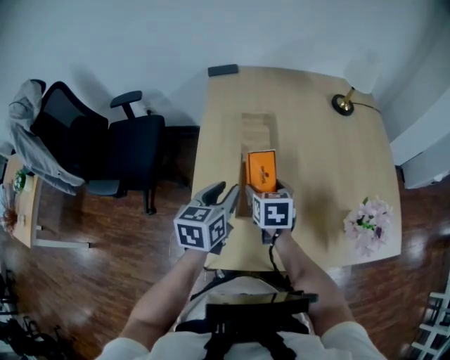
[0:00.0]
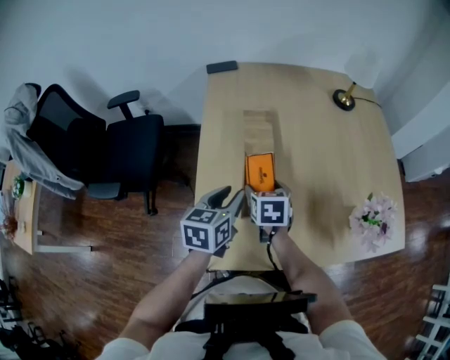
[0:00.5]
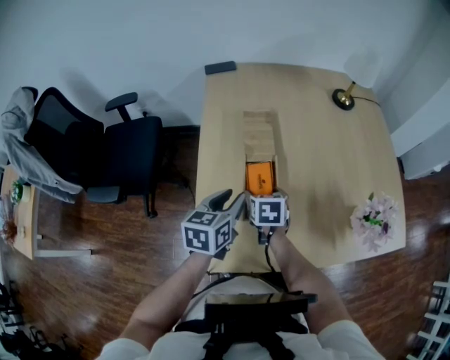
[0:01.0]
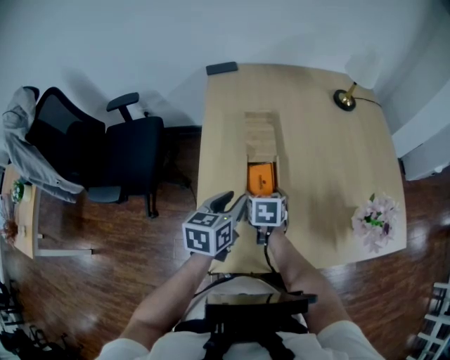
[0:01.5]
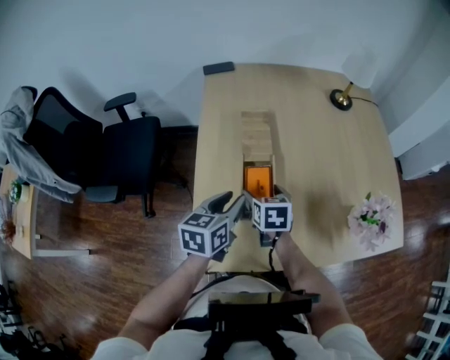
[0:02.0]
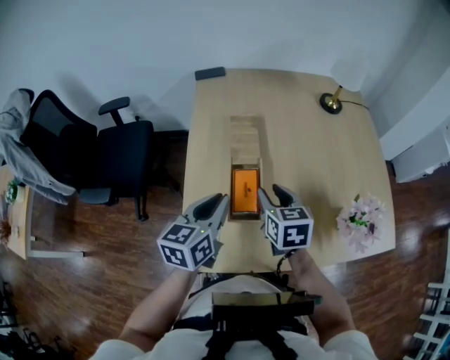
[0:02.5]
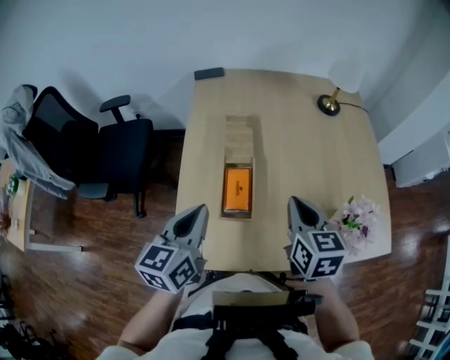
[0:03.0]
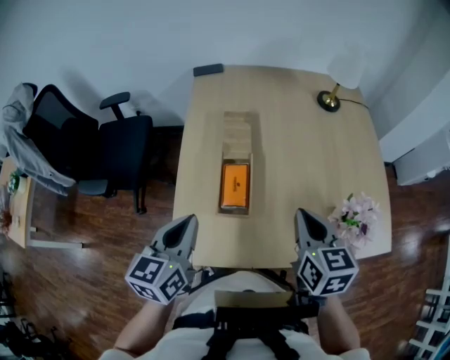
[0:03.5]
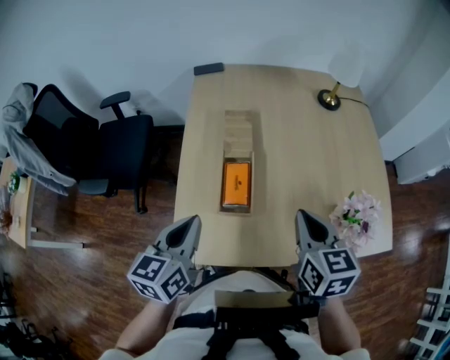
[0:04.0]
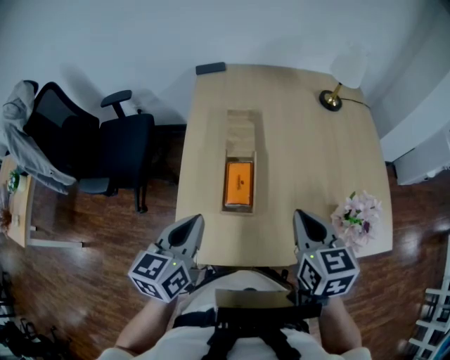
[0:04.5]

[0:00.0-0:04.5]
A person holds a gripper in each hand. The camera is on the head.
0:02.0 to 0:04.5: The left gripper shifts roughly 15 cm backward and upward, and closes up; the right gripper travels upward, to the right and backward by approximately 25 cm, and closes its fingers.

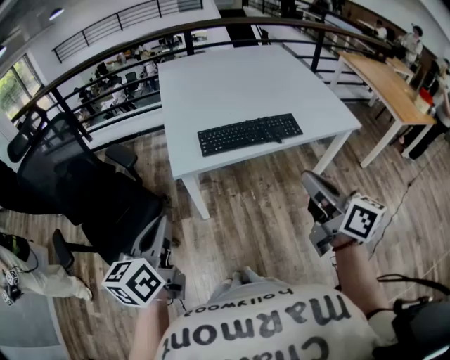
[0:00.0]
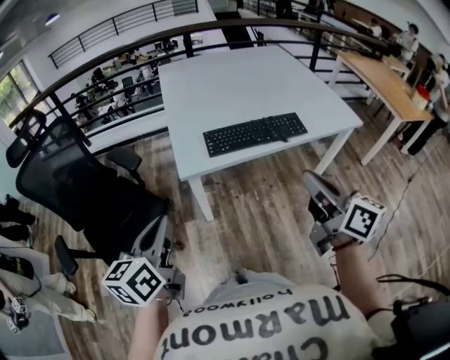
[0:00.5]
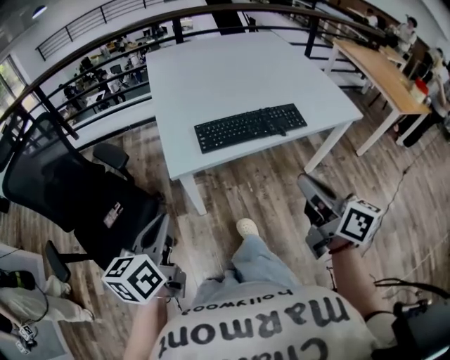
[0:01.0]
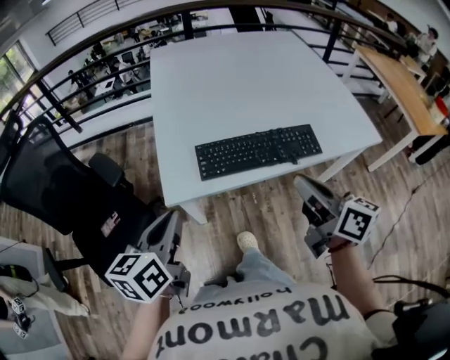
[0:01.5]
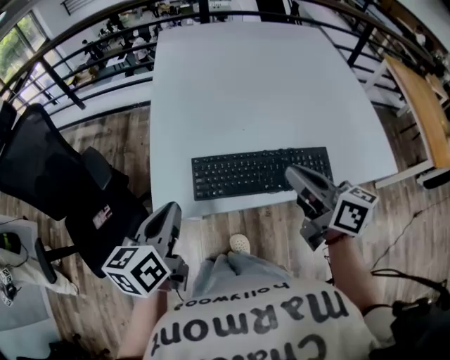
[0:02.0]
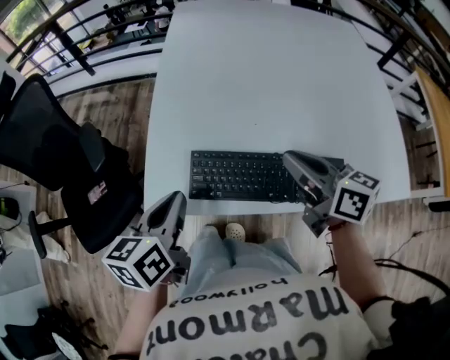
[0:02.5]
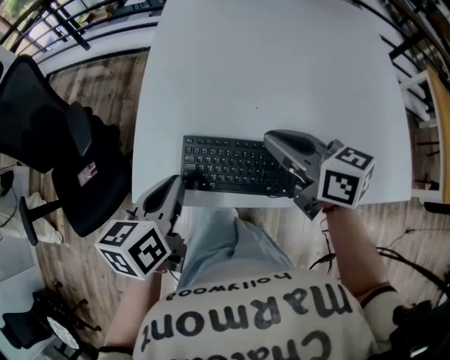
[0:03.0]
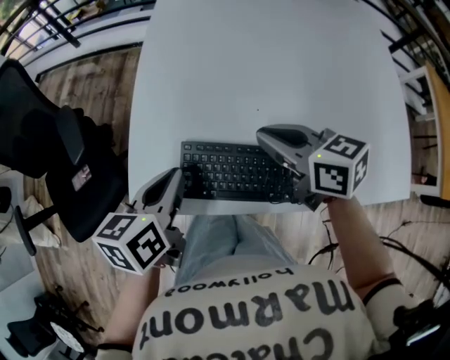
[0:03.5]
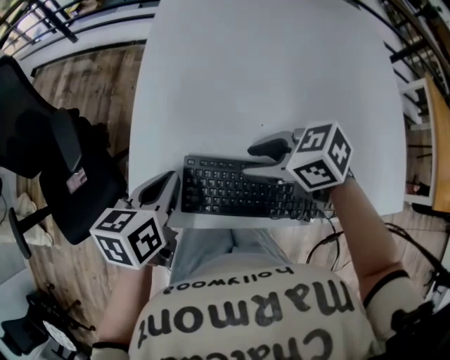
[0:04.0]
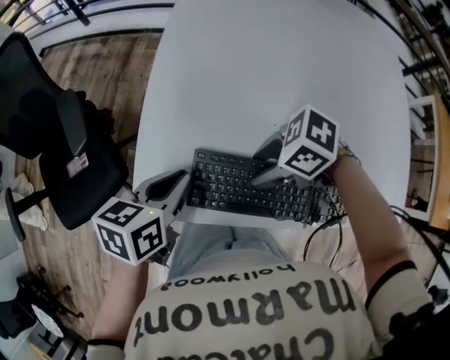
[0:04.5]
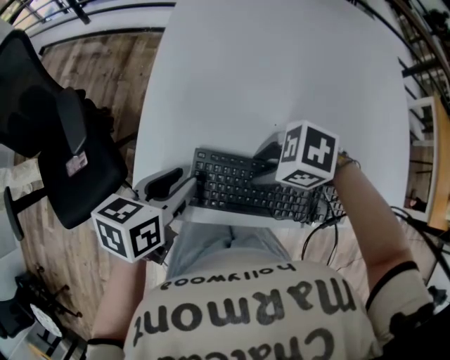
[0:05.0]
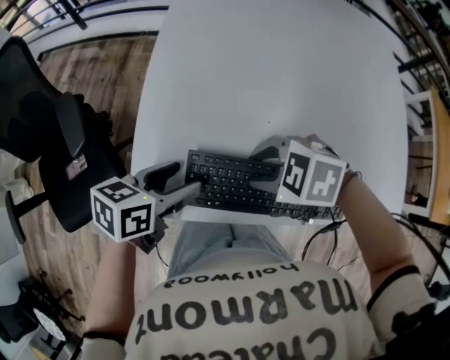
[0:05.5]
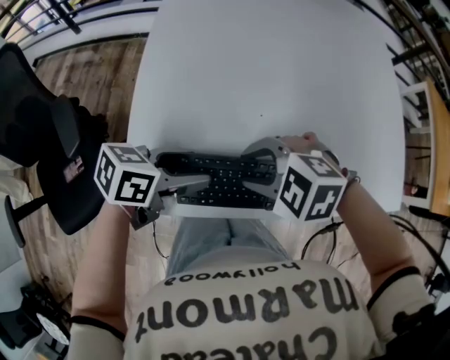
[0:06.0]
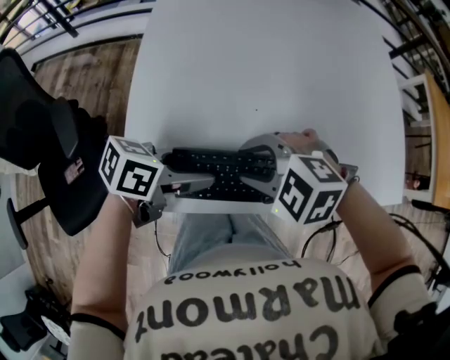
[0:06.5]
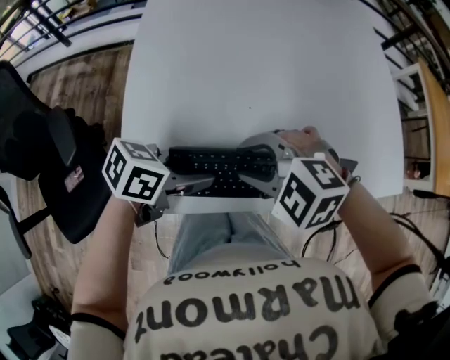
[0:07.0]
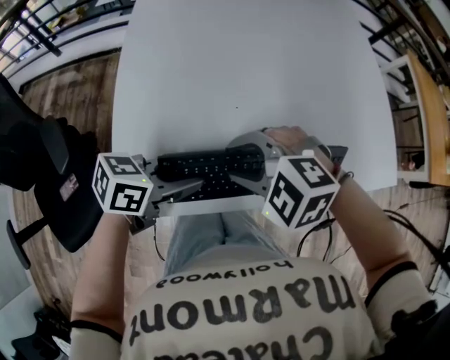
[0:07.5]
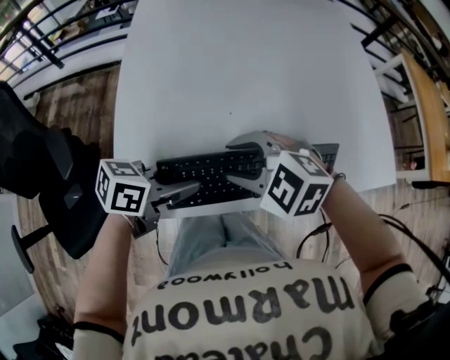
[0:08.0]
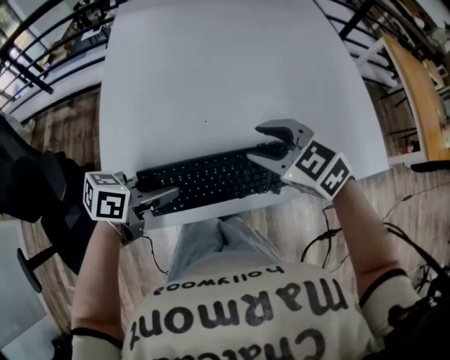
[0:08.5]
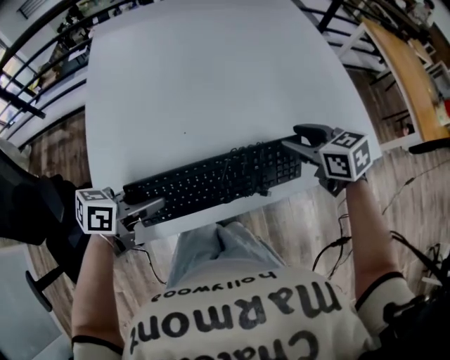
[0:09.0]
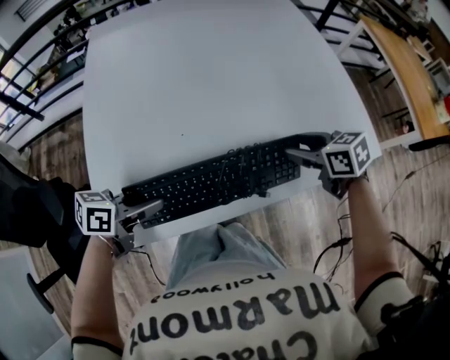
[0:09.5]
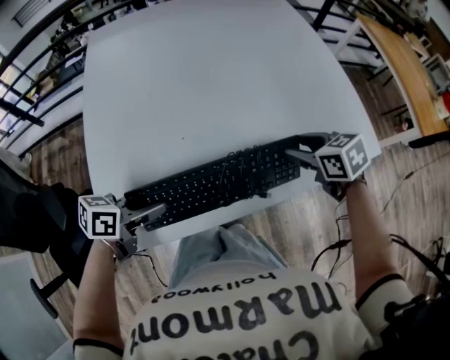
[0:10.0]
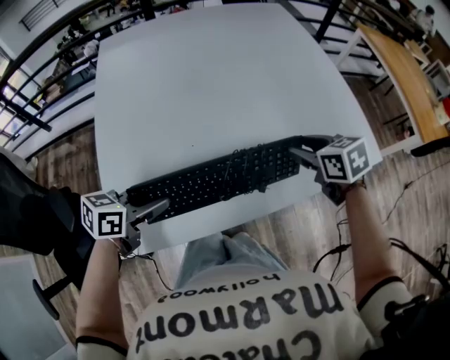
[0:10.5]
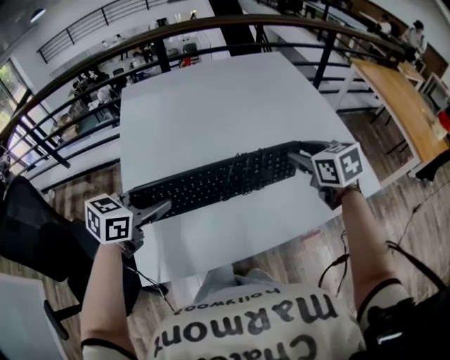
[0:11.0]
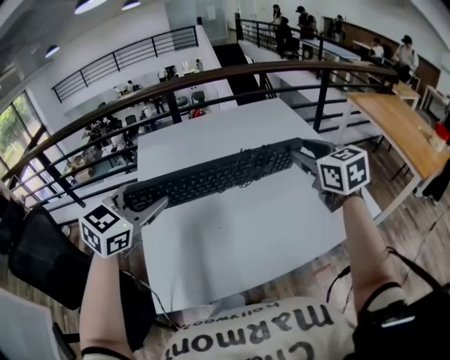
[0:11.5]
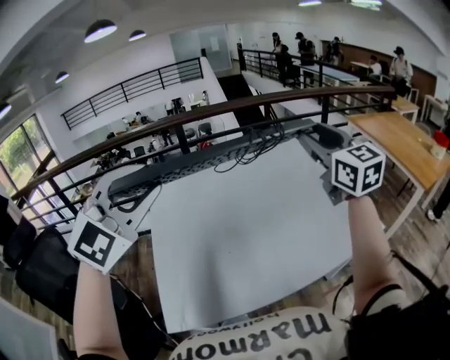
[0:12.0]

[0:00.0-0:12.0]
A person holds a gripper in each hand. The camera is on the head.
0:00.0 to 0:02.0: The grippers both shift forward by roughly 25 cm.
0:02.0 to 0:04.0: The right gripper ends up roughly 20 cm from where it was, angles its fingers downward, by some 30 degrees, and opens its fingers. The left gripper moves approximately 15 cm.
0:04.0 to 0:06.0: The left gripper shifts by roughly 5 cm, swivels about 40 degrees, and opens its fingers, while the right gripper turns by roughly 40 degrees.
0:06.0 to 0:08.0: The left gripper closes.
0:08.0 to 0:10.0: The right gripper moves approximately 30 cm, and twists approximately 60 degrees clockwise, seen from behind.
0:10.0 to 0:12.0: Both grippers travel together upward, approximately 50 cm. The left gripper rolls clockwise, seen from behind, by approximately 90 degrees, while the right gripper points its fingers about 60 degrees further upward.

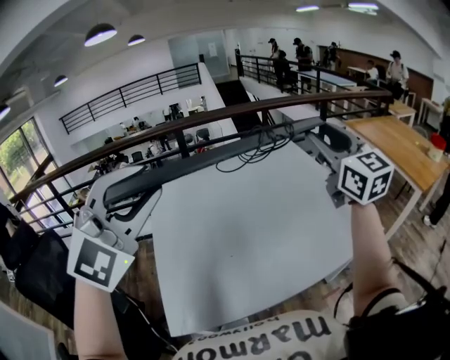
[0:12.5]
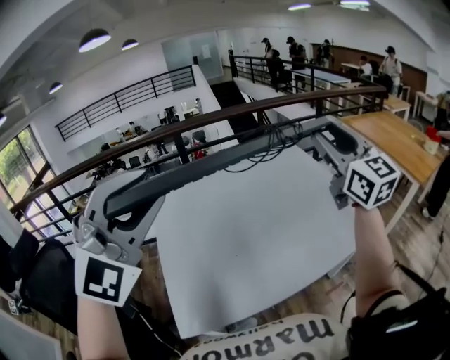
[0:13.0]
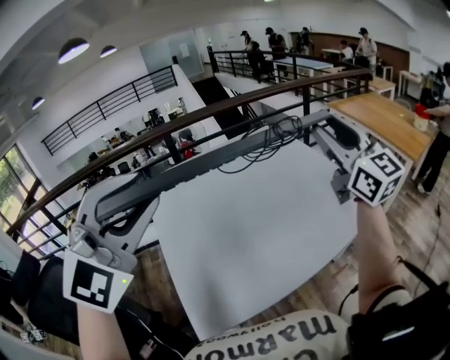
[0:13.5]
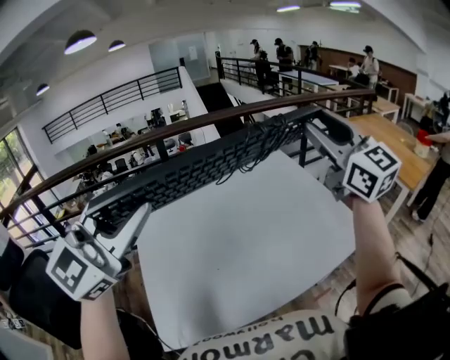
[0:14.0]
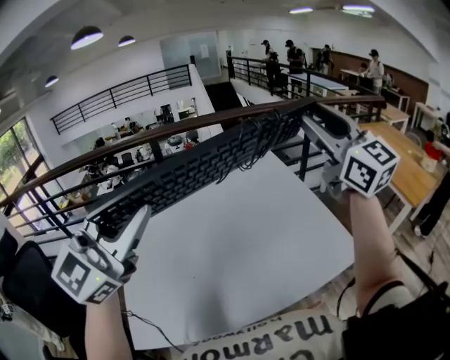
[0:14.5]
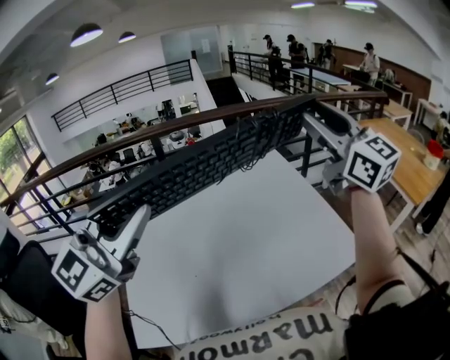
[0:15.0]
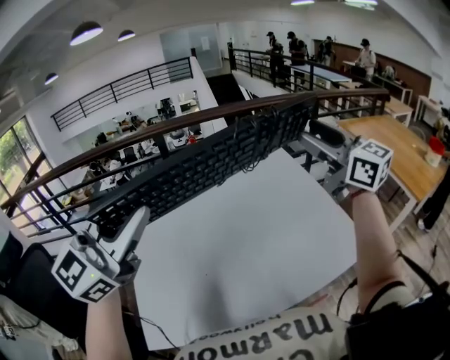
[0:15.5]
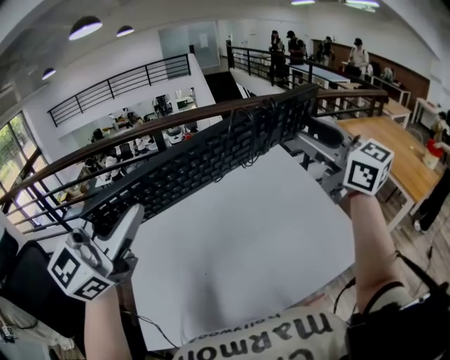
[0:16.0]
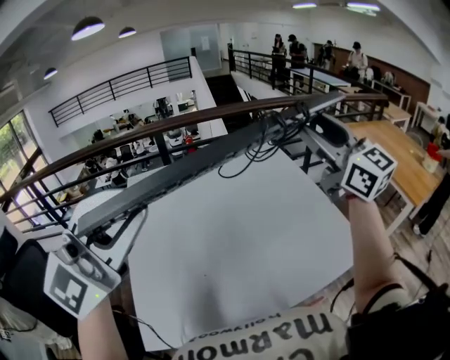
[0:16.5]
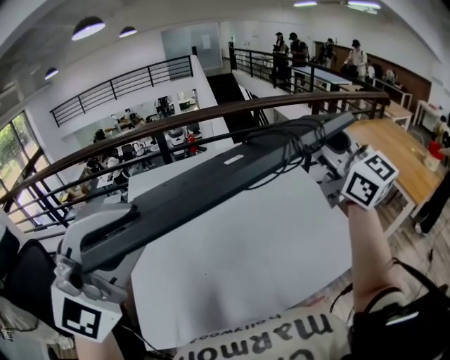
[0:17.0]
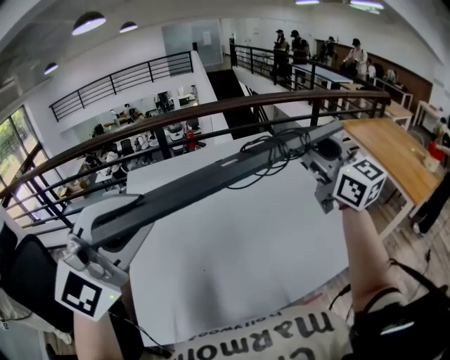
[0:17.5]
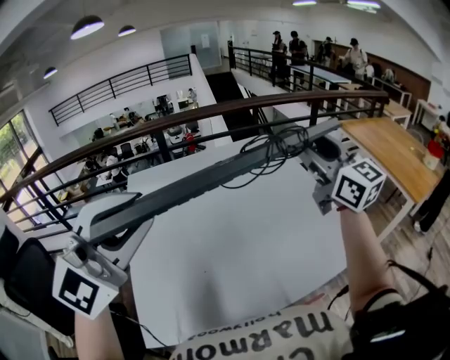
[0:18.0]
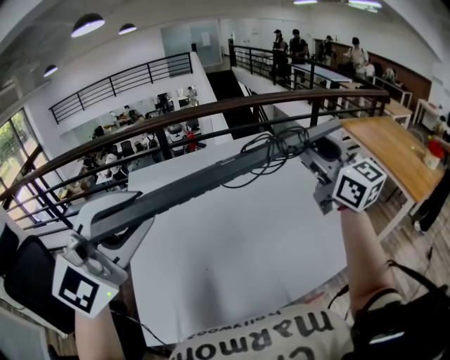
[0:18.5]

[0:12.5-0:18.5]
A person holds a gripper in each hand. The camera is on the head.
0:12.5 to 0:14.5: The left gripper travels upward and forward by some 10 cm, and turns by some 40 degrees; the right gripper goes roughly 15 cm upward and forward.
0:14.5 to 0:16.5: The right gripper ends up approximately 5 cm from where it was.

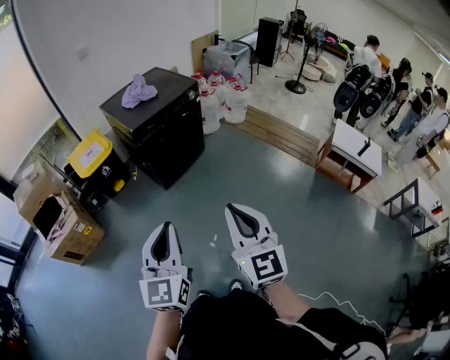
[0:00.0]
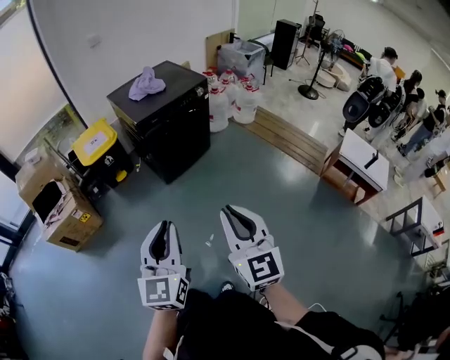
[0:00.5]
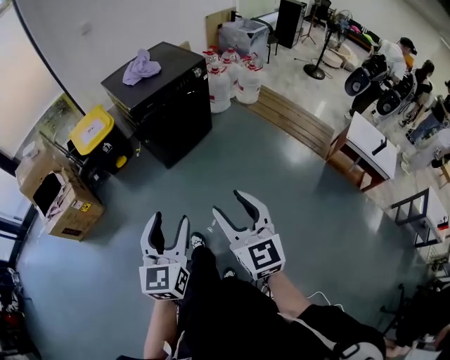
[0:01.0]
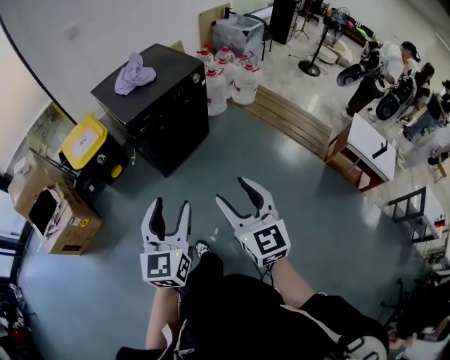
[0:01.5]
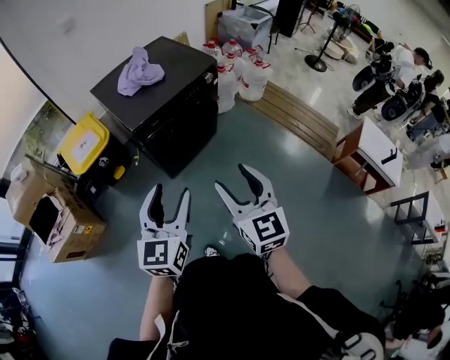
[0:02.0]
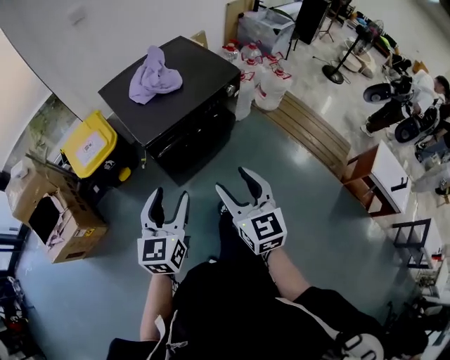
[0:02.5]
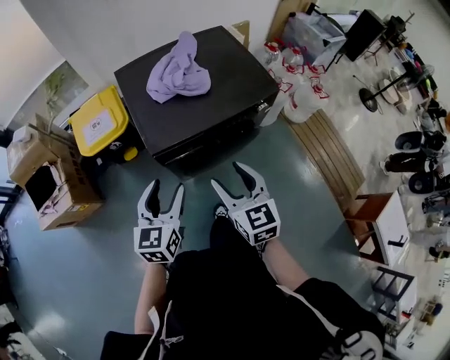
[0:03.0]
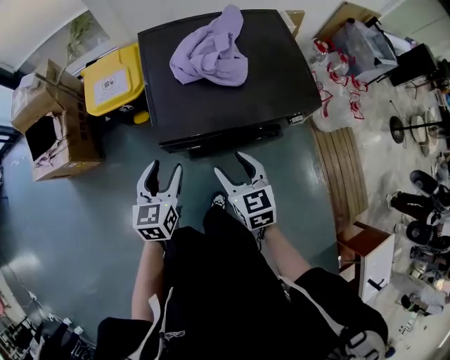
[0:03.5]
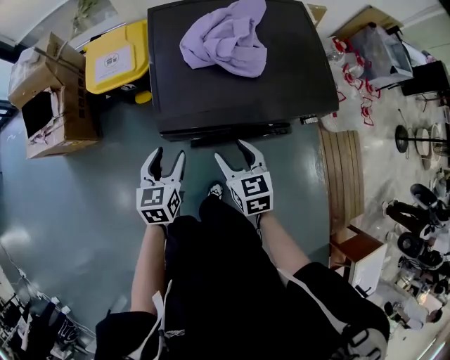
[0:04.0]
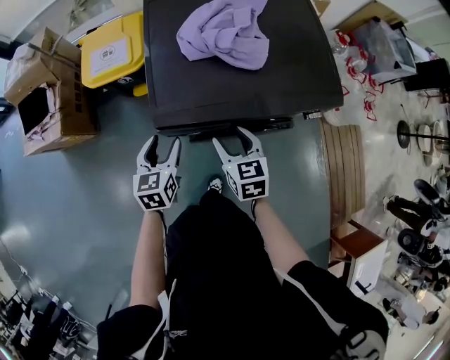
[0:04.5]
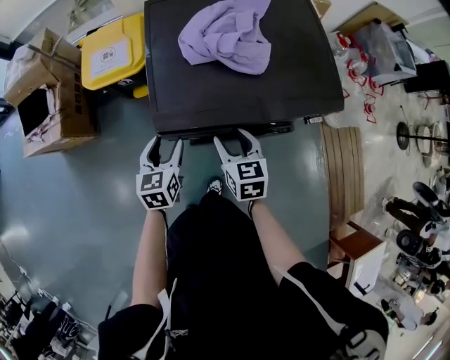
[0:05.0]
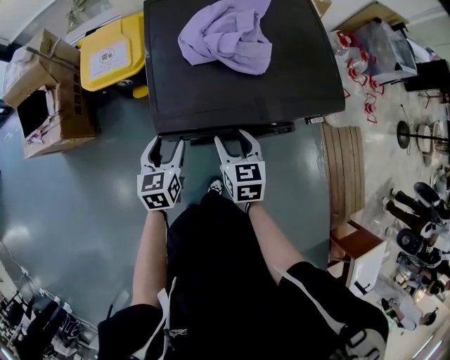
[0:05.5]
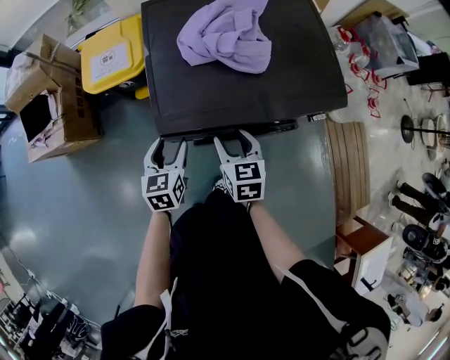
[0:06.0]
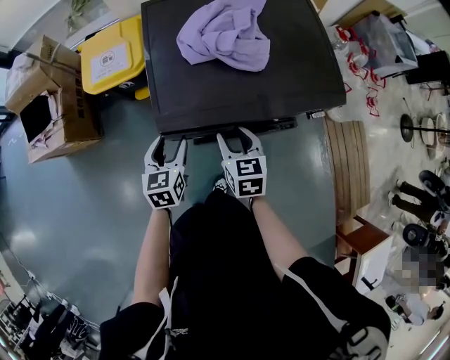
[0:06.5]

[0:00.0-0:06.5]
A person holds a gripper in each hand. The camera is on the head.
0:00.0 to 0:02.0: The grippers both shift forward by roughly 35 cm. The left gripper opens up. Meanwhile the right gripper opens its fingers.
0:02.0 to 0:04.5: Both grippers are carried some 50 cm. The left gripper turns by some 50 degrees, while the right gripper rotates about 40 degrees.
0:04.5 to 0:06.5: The grippers stay close to where they were, moving slightly.
